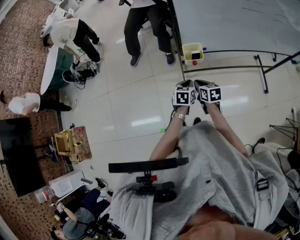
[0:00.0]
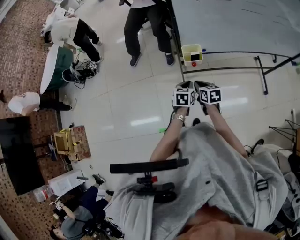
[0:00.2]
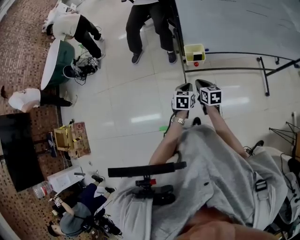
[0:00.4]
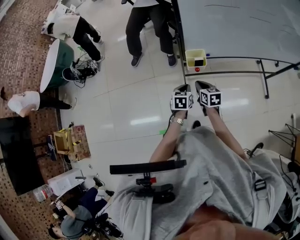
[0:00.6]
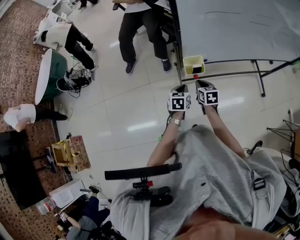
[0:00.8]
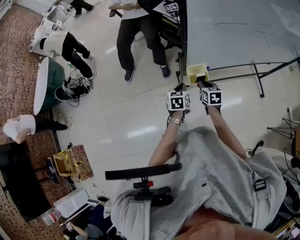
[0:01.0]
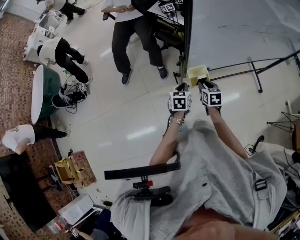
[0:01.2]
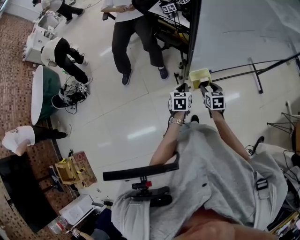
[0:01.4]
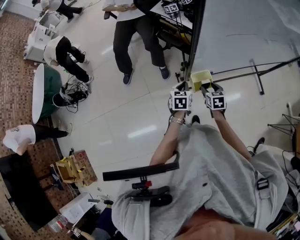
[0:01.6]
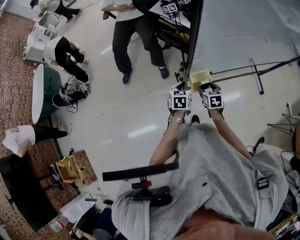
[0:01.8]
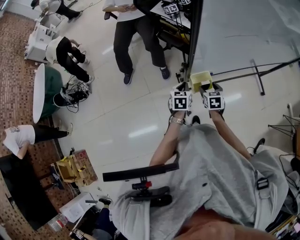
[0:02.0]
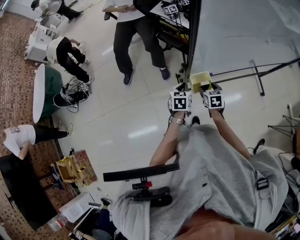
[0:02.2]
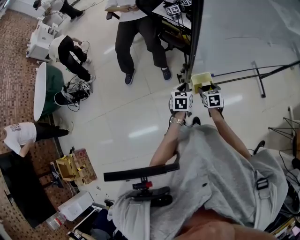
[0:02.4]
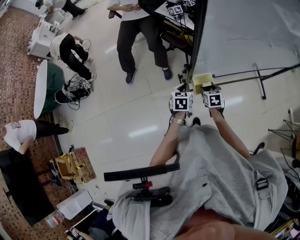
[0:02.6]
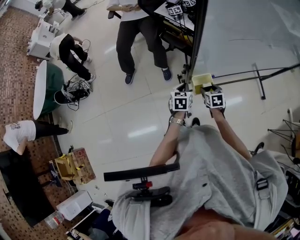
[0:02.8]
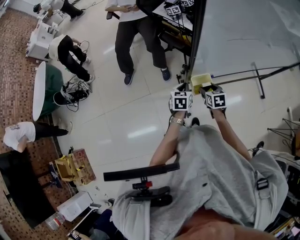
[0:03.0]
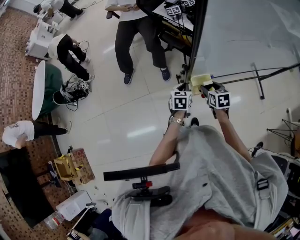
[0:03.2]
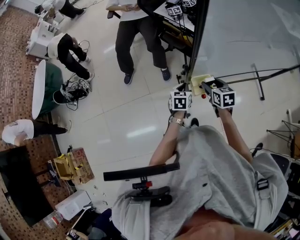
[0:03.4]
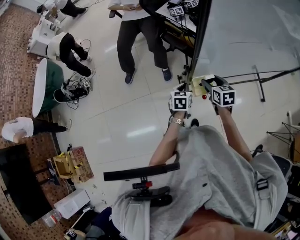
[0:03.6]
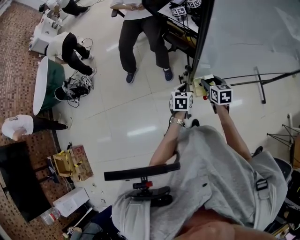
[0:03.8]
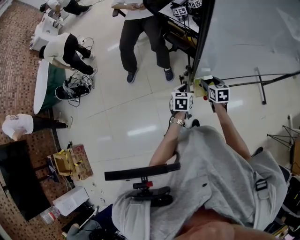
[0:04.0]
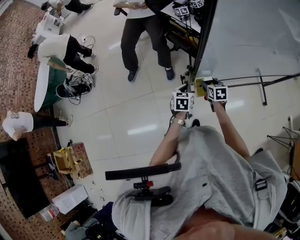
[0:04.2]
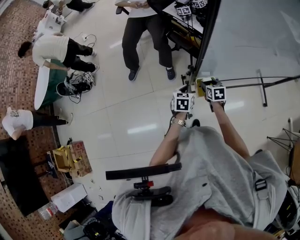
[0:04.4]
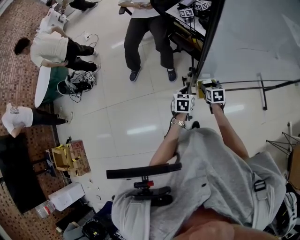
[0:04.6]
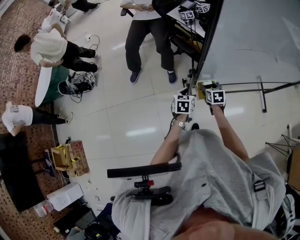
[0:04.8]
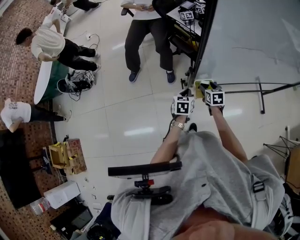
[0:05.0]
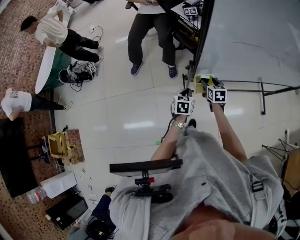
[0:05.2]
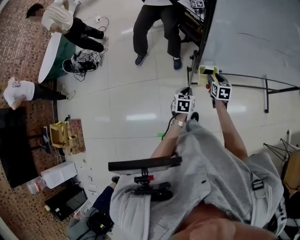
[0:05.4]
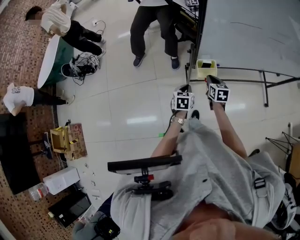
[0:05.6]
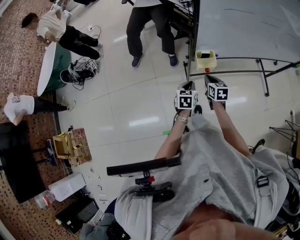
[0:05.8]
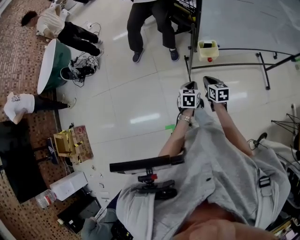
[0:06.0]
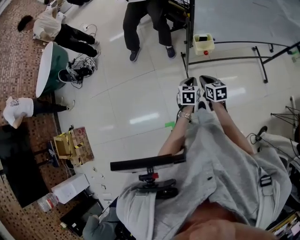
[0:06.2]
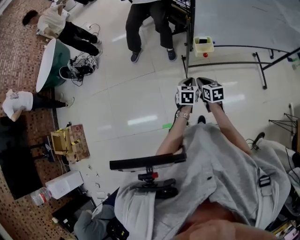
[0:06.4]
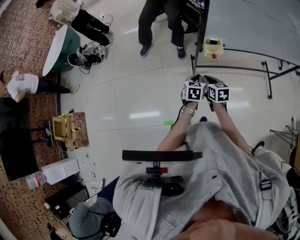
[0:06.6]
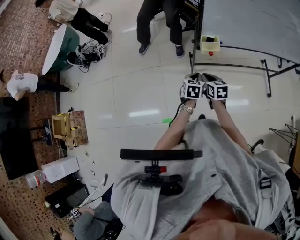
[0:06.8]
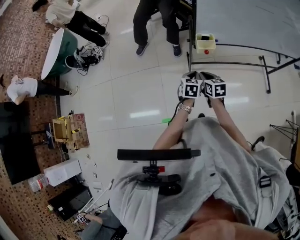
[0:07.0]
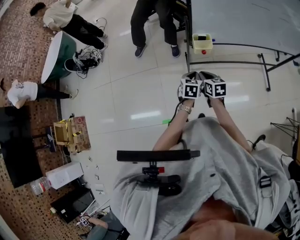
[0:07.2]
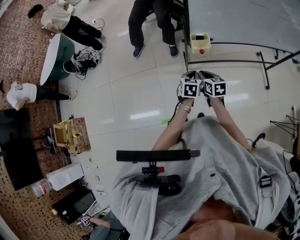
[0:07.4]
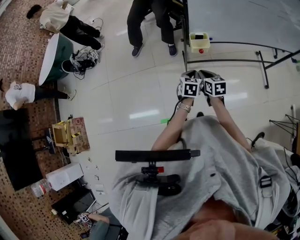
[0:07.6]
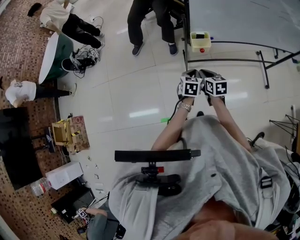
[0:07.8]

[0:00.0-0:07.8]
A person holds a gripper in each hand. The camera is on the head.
0:00.0 to 0:01.6: Both grippers move forward, approximately 20 cm. The right gripper turns by some 20 degrees, and opens its fingers.
0:01.6 to 0:03.2: The right gripper shifts by roughly 5 cm.
0:03.2 to 0:04.6: The right gripper goes some 10 cm downward and forward.
0:04.6 to 0:06.2: Both grippers move backward, about 25 cm. The right gripper closes.
0:06.2 to 0:07.8: The left gripper travels to the right by roughly 5 cm.

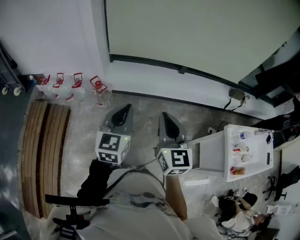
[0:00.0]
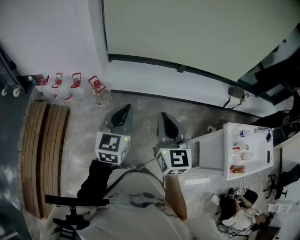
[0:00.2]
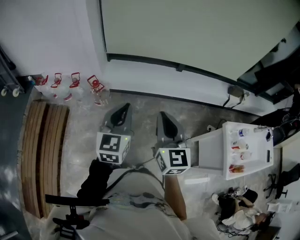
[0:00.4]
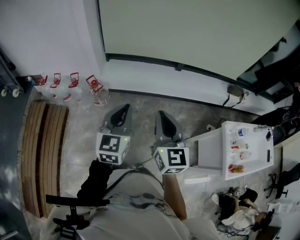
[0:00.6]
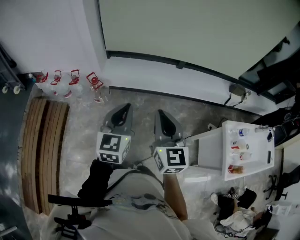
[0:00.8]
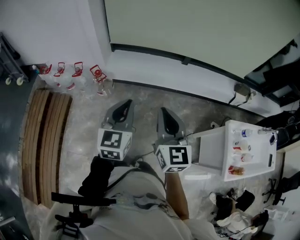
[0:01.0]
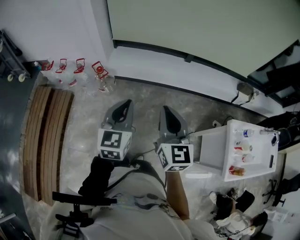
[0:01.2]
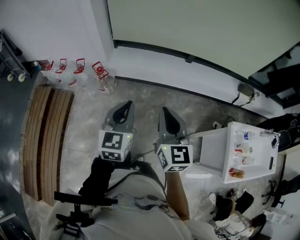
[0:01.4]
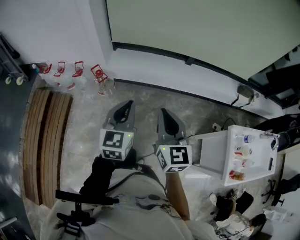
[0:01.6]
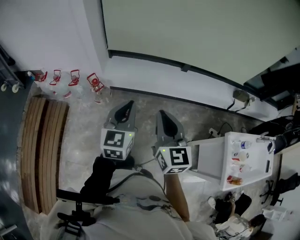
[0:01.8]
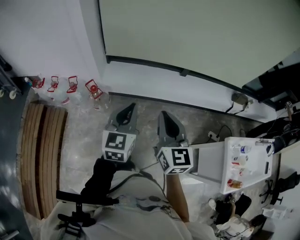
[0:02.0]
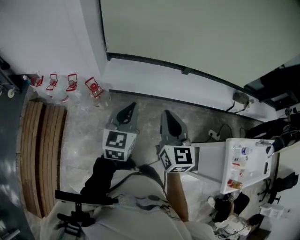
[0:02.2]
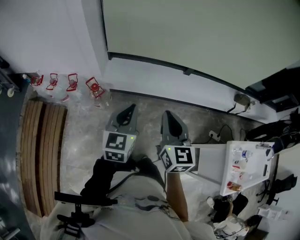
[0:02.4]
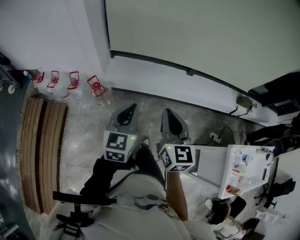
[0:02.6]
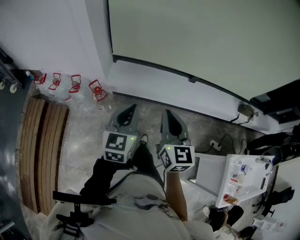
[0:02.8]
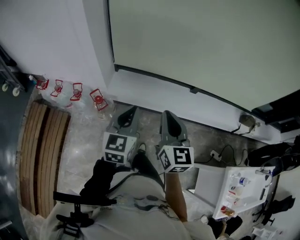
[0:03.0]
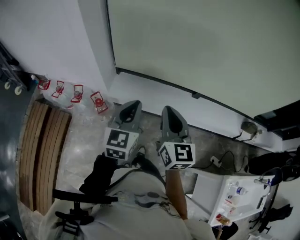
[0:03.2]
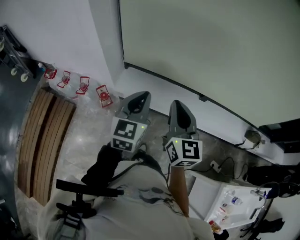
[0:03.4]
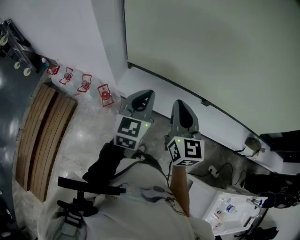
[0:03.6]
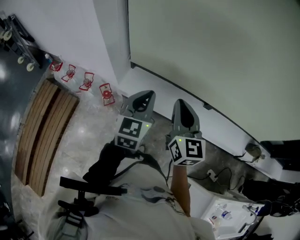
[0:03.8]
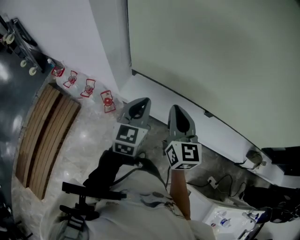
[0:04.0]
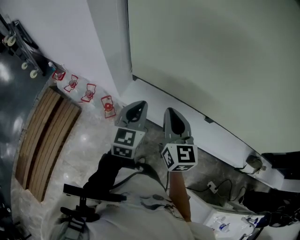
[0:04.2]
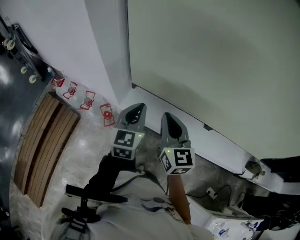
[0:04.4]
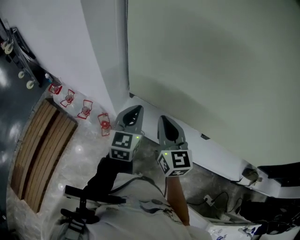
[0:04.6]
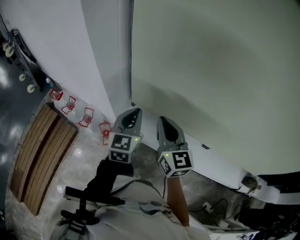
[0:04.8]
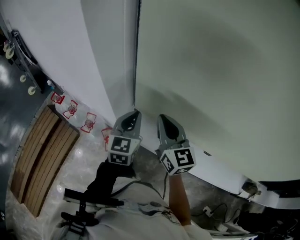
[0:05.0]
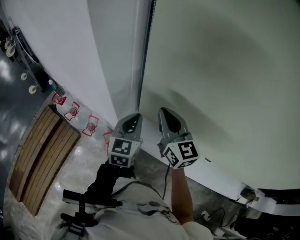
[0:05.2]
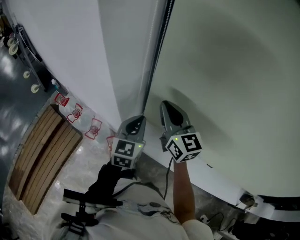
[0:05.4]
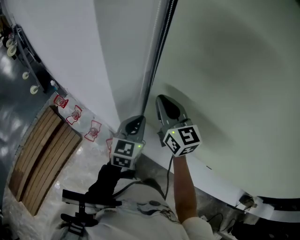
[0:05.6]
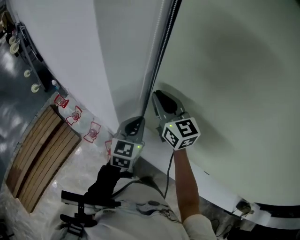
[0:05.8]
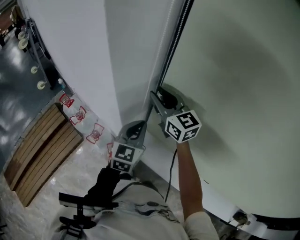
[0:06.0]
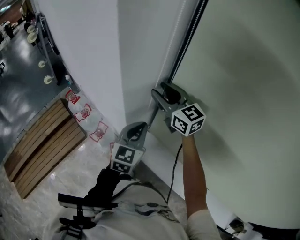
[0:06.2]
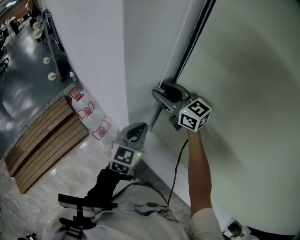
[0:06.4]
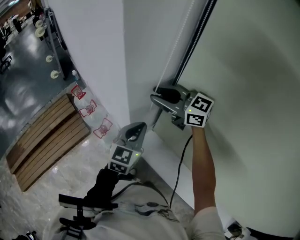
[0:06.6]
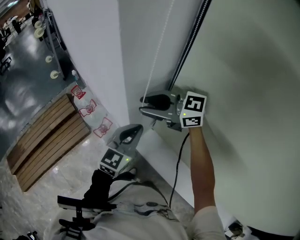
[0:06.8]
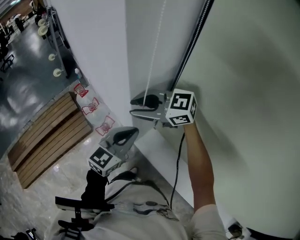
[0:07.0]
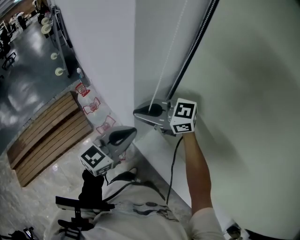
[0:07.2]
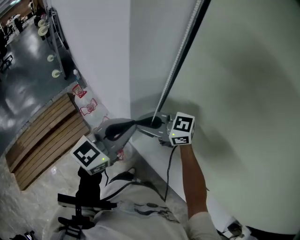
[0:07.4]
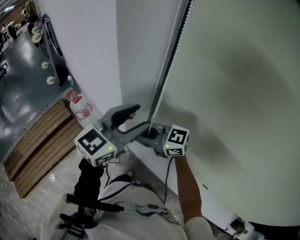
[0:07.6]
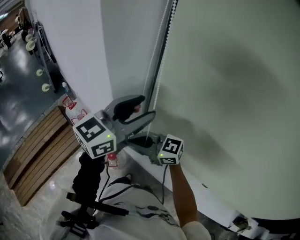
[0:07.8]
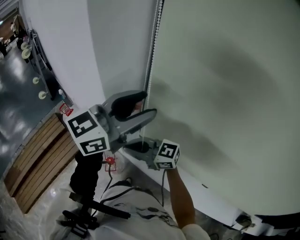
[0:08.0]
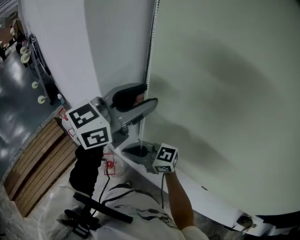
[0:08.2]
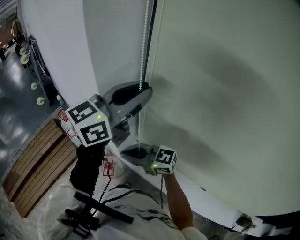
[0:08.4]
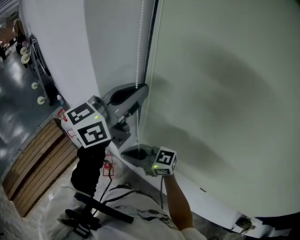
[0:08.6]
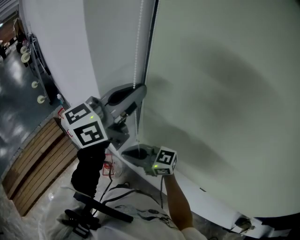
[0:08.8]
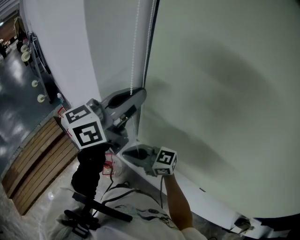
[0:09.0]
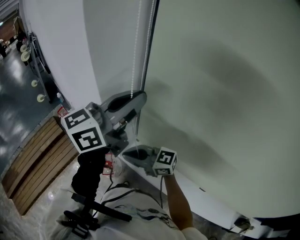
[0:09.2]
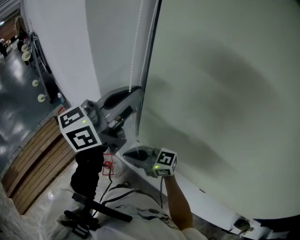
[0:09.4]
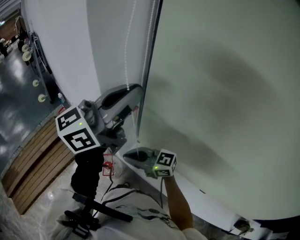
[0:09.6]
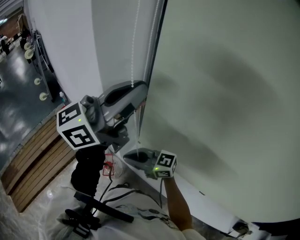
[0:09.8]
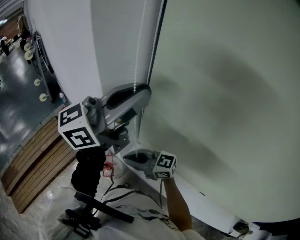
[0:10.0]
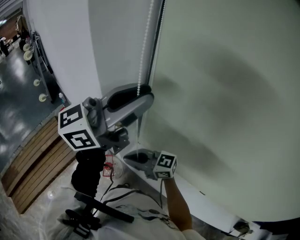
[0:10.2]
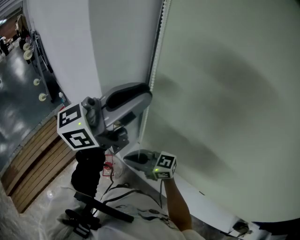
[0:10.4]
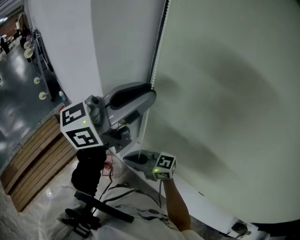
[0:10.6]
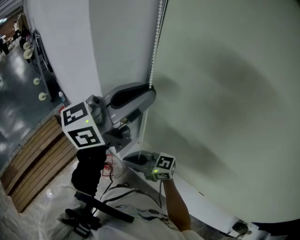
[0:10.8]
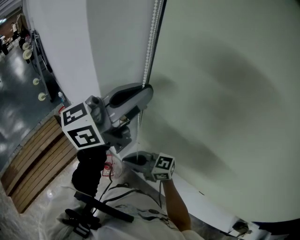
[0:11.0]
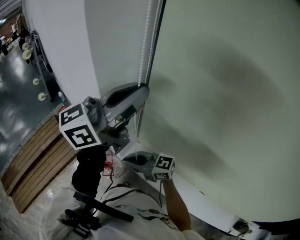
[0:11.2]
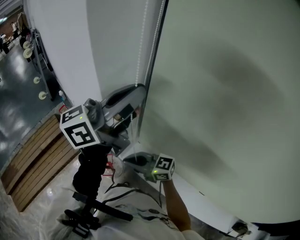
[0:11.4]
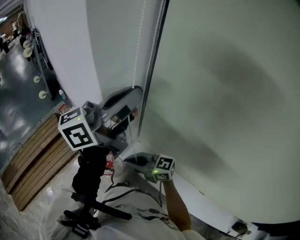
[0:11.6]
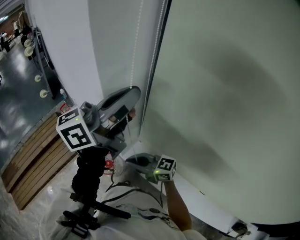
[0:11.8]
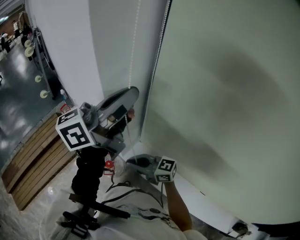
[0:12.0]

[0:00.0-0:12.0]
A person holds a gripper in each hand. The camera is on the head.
0:00.0 to 0:01.6: The right gripper moves some 5 cm. Meanwhile the left gripper shifts by roughly 5 cm.
0:01.6 to 0:03.0: Both grippers move forward, about 25 cm.
0:03.0 to 0:04.4: The grippers both shift forward by about 20 cm.
0:04.4 to 0:06.0: The right gripper shifts some 40 cm forward, rotates roughly 40 degrees, and opens its fingers. The left gripper travels forward by about 25 cm.
0:06.0 to 0:07.6: The right gripper ends up about 20 cm from where it was, changes its angle by about 50 degrees, and closes. Meanwhile the left gripper goes about 15 cm upward, rotates approximately 20 degrees, and opens.
0:07.6 to 0:09.0: The left gripper is displaced upward by about 15 cm, rotates about 30 degrees, and closes up.
0:09.0 to 0:10.4: The left gripper ends up roughly 5 cm from where it was.
0:10.4 to 0:12.0: The left gripper shifts by roughly 5 cm.

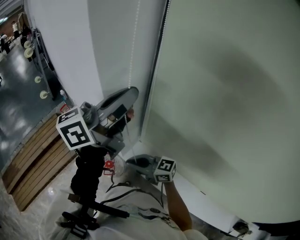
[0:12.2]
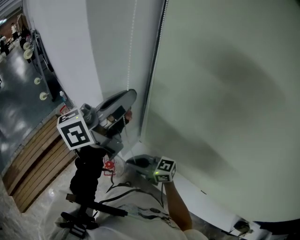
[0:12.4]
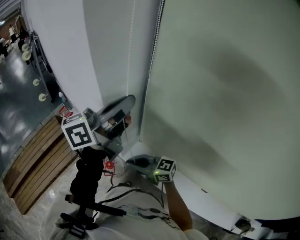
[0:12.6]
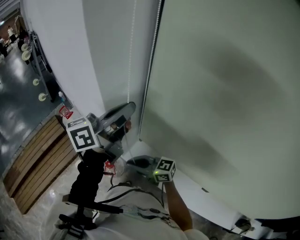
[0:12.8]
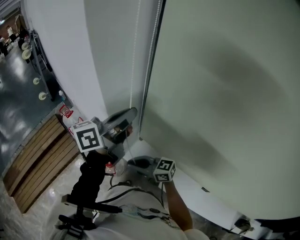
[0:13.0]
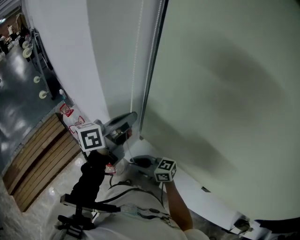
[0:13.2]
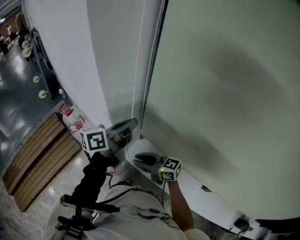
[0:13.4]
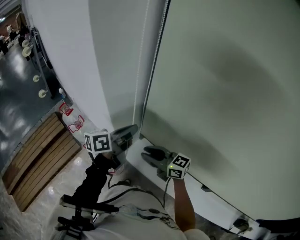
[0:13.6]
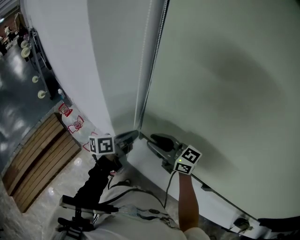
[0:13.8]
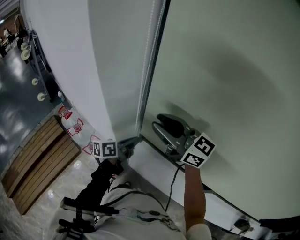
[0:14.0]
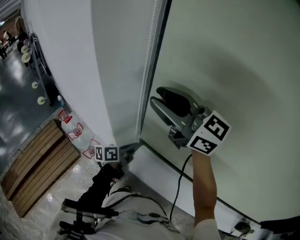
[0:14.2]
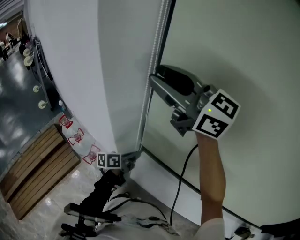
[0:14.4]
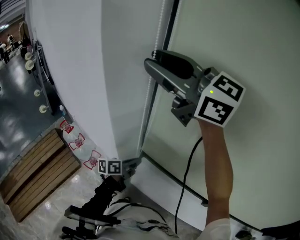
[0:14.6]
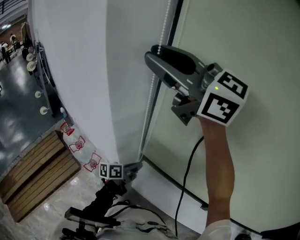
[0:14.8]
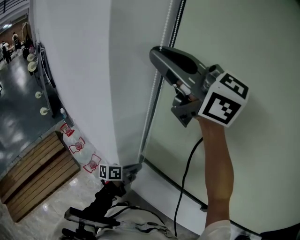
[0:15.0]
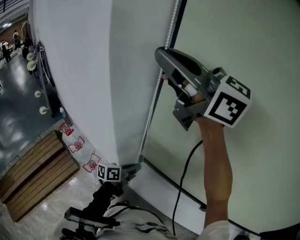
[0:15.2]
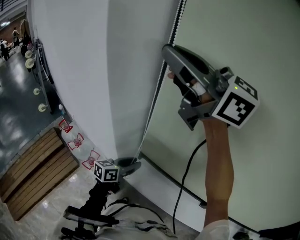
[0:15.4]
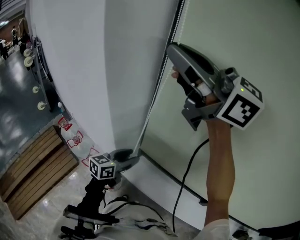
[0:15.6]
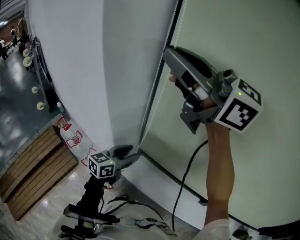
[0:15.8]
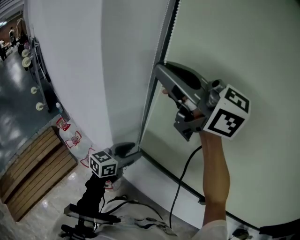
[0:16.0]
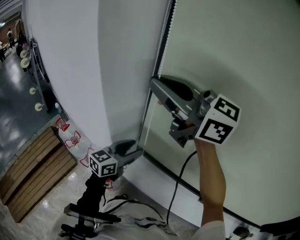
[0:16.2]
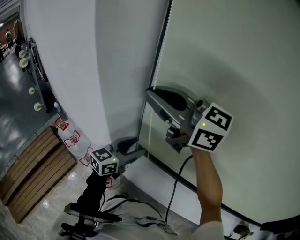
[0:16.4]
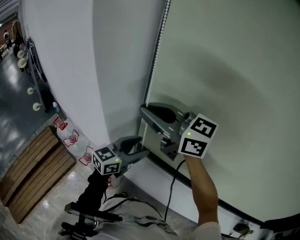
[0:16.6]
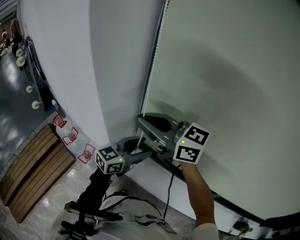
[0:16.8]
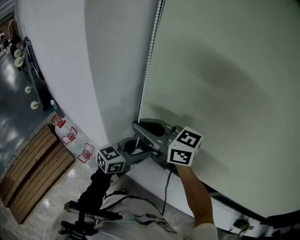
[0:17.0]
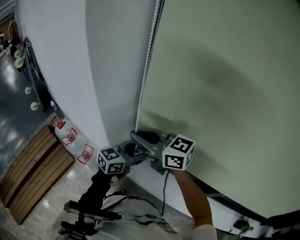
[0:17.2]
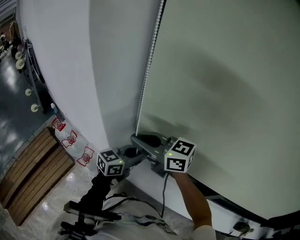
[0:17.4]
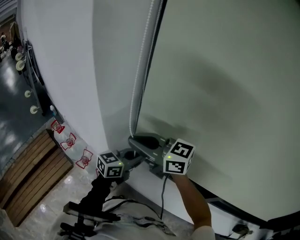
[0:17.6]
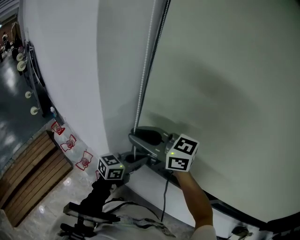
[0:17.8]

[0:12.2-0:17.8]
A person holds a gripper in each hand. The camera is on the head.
0:12.2 to 0:13.6: The right gripper ends up roughly 10 cm from where it was, and opens its fingers, while the left gripper shifts some 25 cm downward, and turns by some 30 degrees.
0:13.6 to 0:15.0: The right gripper is displaced upward by about 50 cm, swivels about 40 degrees, and closes, while the left gripper travels downward by about 10 cm.
0:15.0 to 0:16.4: The right gripper goes some 10 cm downward, while the left gripper moves upward, roughly 15 cm, rolls clockwise, seen from behind, by roughly 40 degrees, and opens its fingers.
0:16.4 to 0:17.8: The left gripper changes place by about 5 cm, and closes. The right gripper moves downward, roughly 15 cm.
